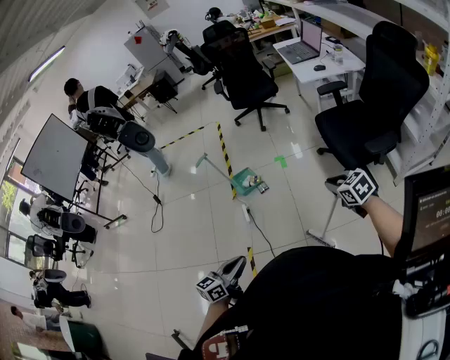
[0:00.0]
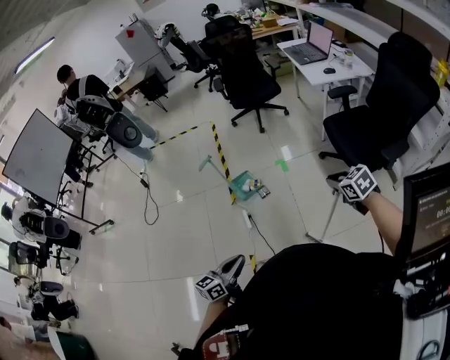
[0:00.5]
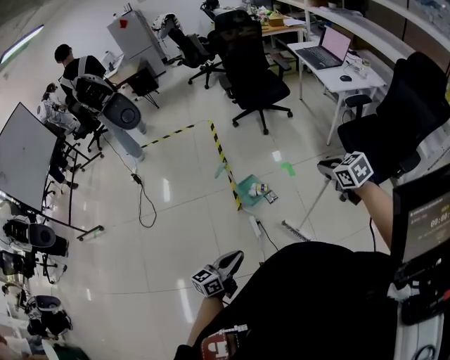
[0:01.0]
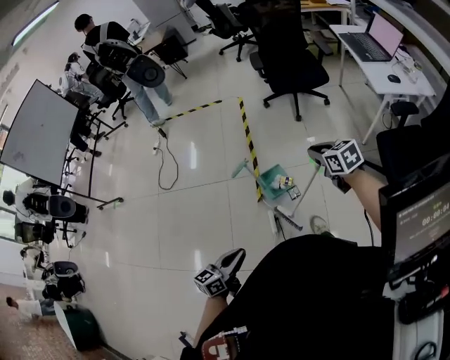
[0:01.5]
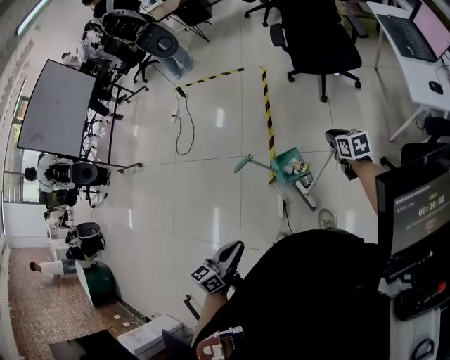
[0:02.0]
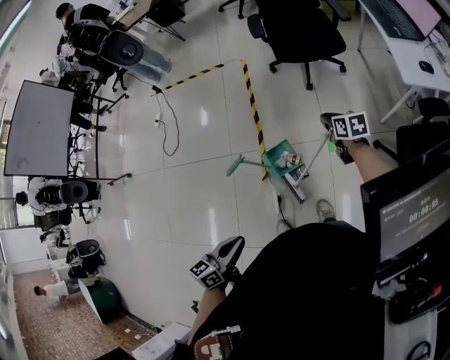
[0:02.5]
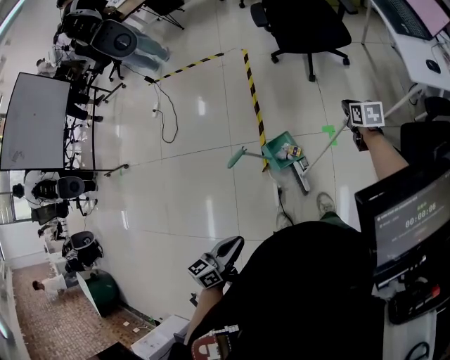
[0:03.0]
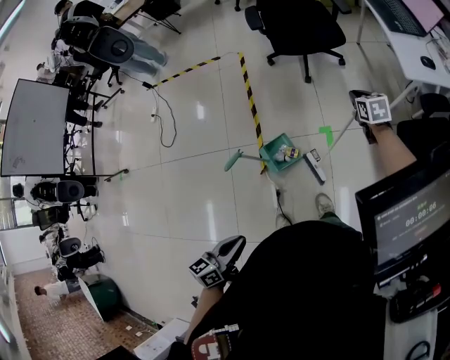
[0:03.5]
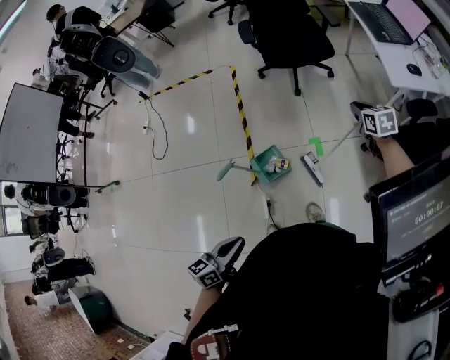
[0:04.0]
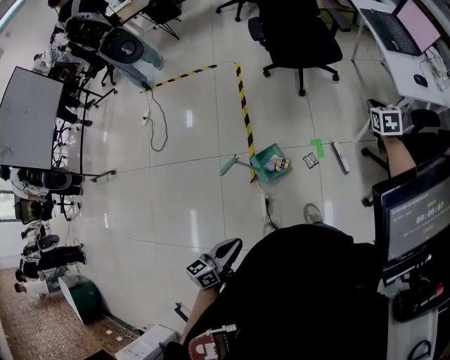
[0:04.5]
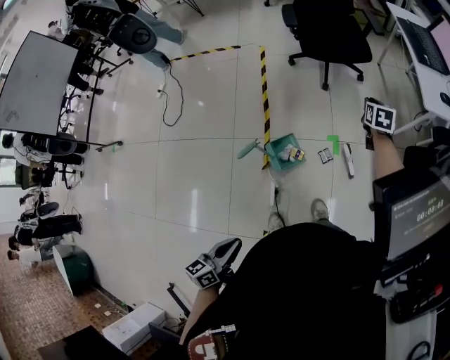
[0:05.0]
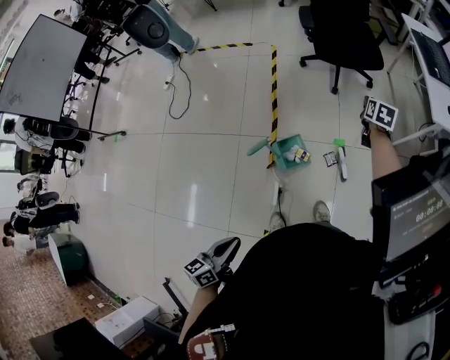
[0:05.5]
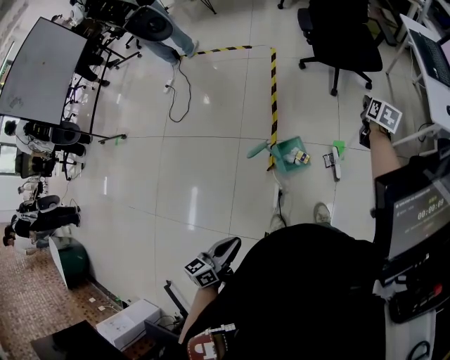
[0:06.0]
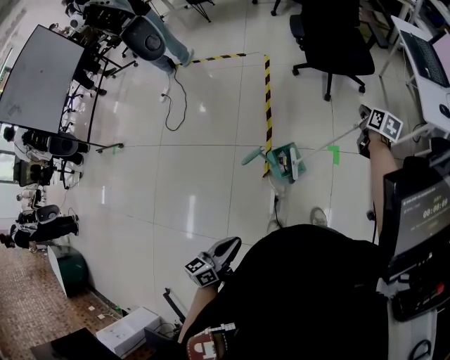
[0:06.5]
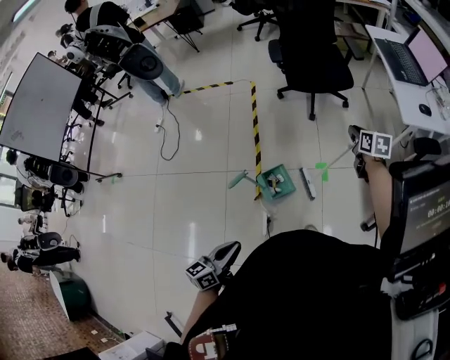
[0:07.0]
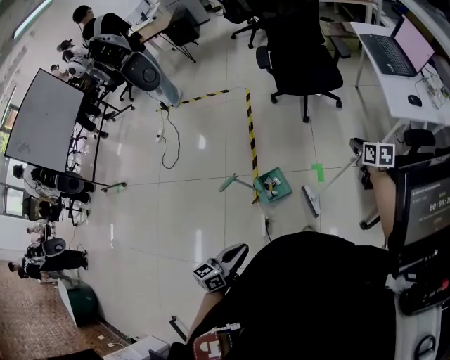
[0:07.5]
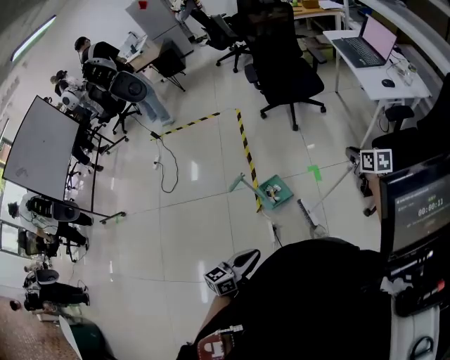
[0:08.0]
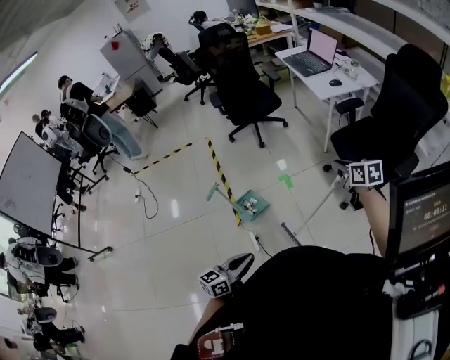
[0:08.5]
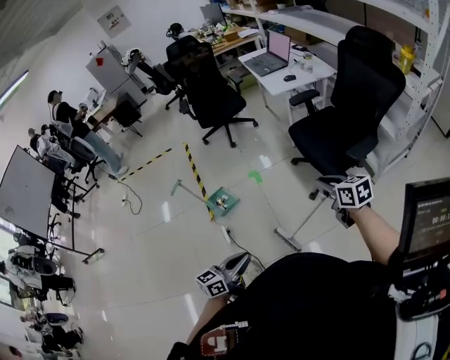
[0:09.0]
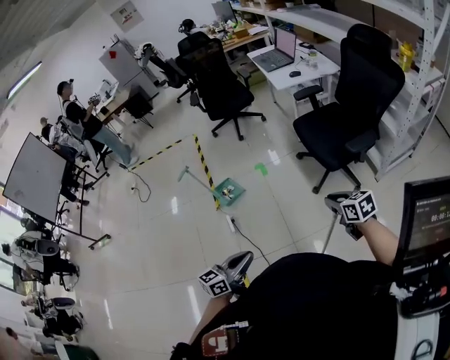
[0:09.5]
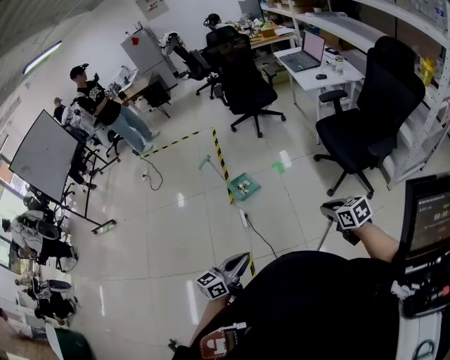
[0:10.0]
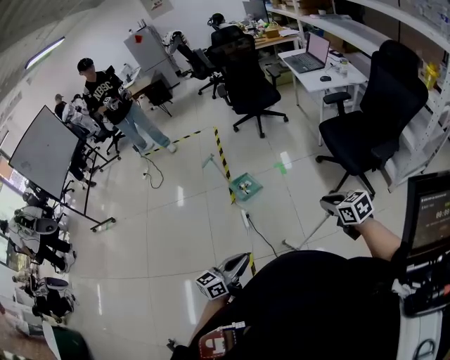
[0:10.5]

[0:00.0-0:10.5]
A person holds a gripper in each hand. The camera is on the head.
0.0 to 2.0 s: The two grippers travel together, forward and to the left, about 60 cm. The left gripper rotates about 20 degrees.
2.0 to 4.0 s: The left gripper is displaced downward and forward by about 10 cm, while the right gripper goes some 15 cm to the right and forward.
4.0 to 6.5 s: The left gripper is displaced to the left and backward by some 10 cm, while the right gripper travels to the left by about 15 cm, and turns by roughly 30 degrees.
6.5 to 8.5 s: The left gripper travels to the right and backward by approximately 20 cm, and turns by some 40 degrees; the right gripper is displaced backward and to the right by approximately 50 cm.
8.5 to 10.5 s: The left gripper goes some 30 cm backward and to the right. Meanwhile the right gripper heads backward, covering some 35 cm, and changes its angle by approximately 30 degrees.

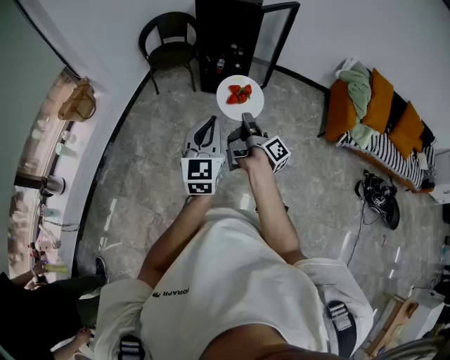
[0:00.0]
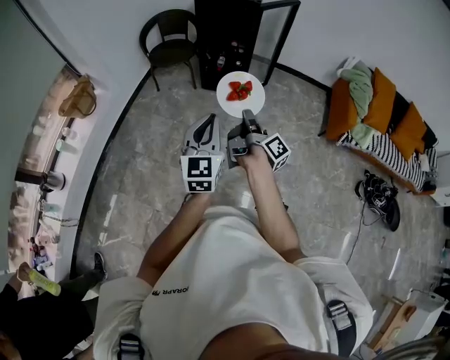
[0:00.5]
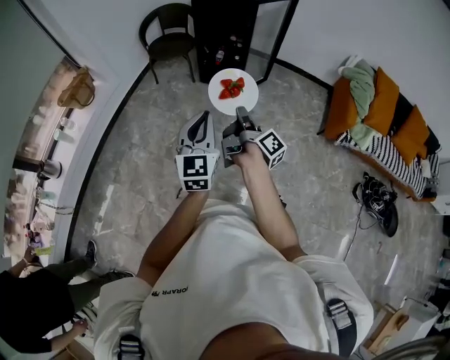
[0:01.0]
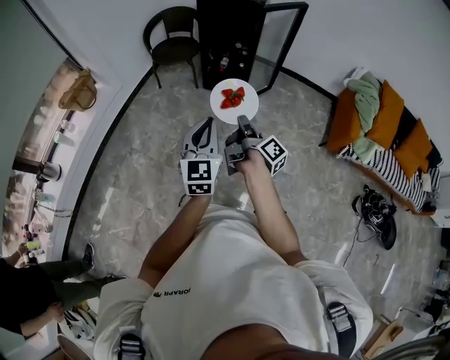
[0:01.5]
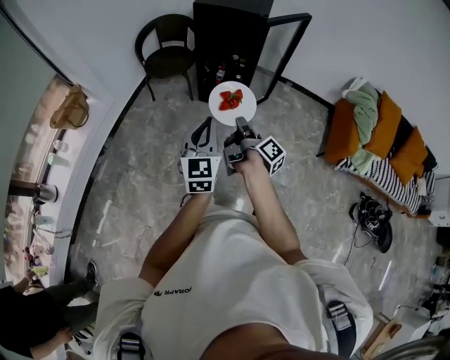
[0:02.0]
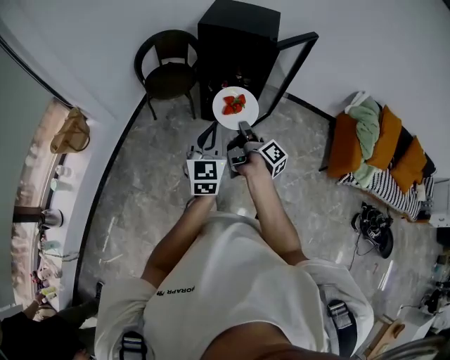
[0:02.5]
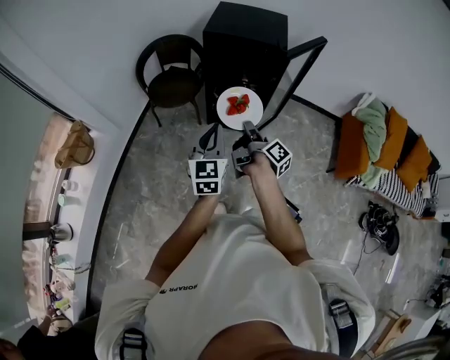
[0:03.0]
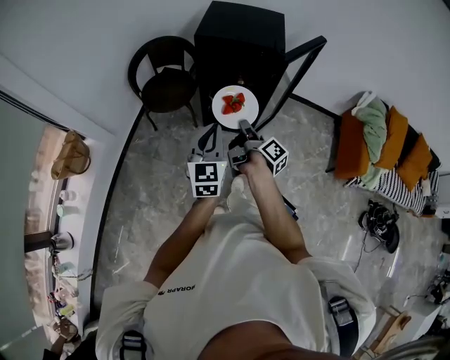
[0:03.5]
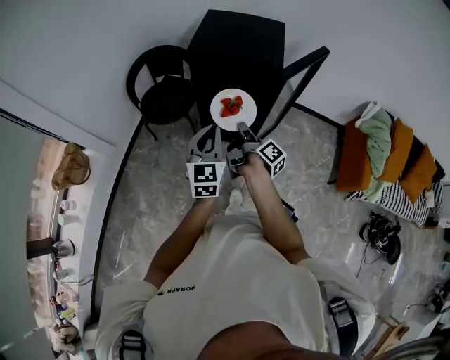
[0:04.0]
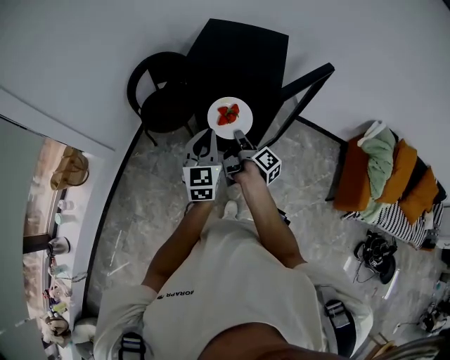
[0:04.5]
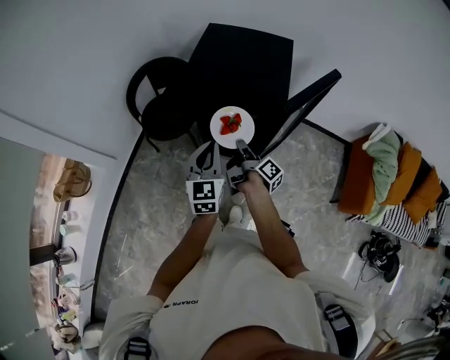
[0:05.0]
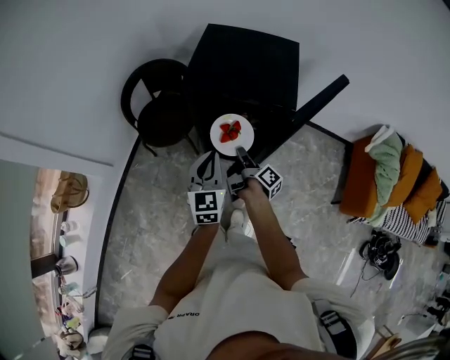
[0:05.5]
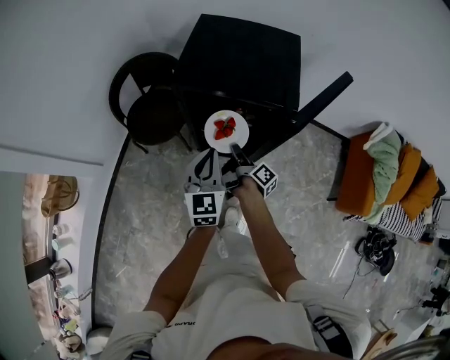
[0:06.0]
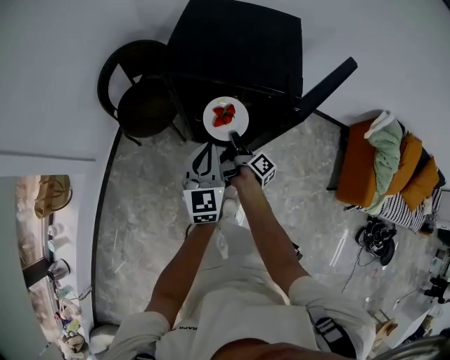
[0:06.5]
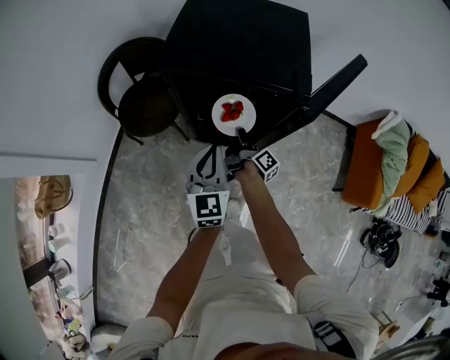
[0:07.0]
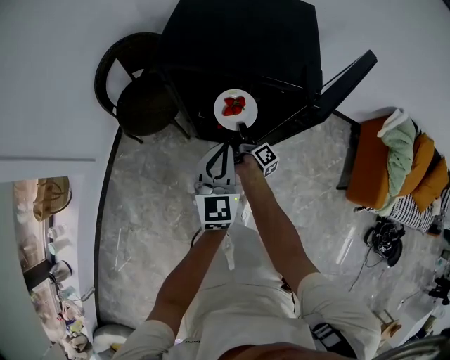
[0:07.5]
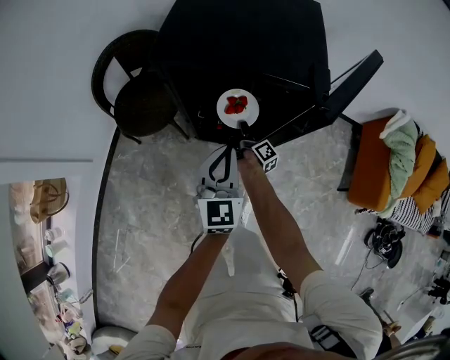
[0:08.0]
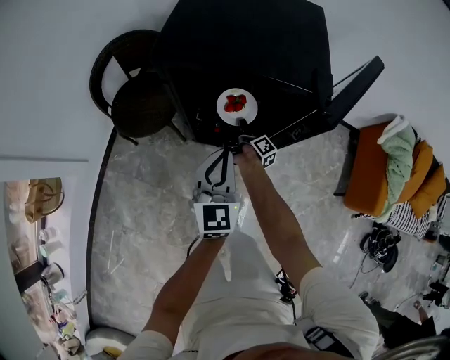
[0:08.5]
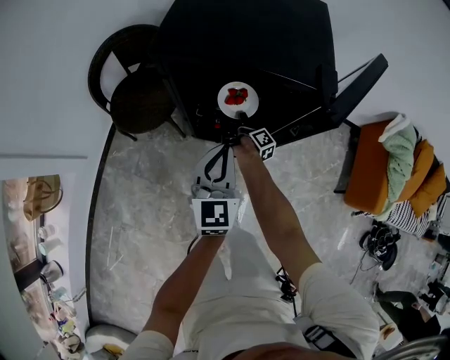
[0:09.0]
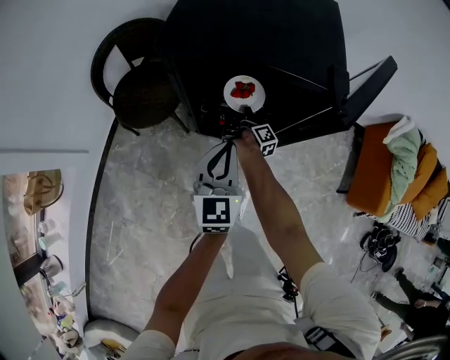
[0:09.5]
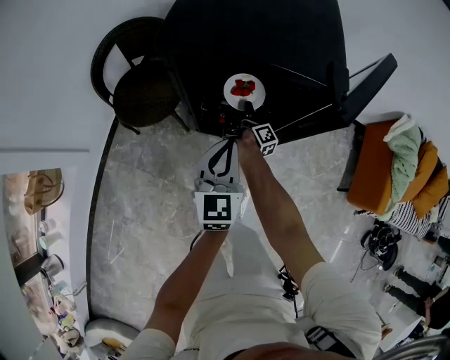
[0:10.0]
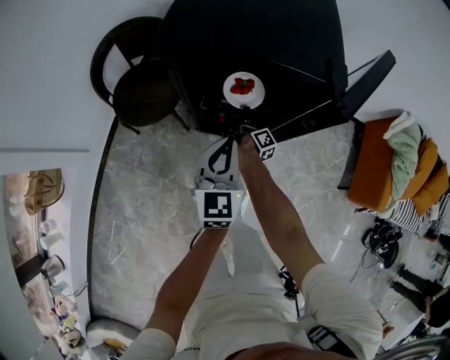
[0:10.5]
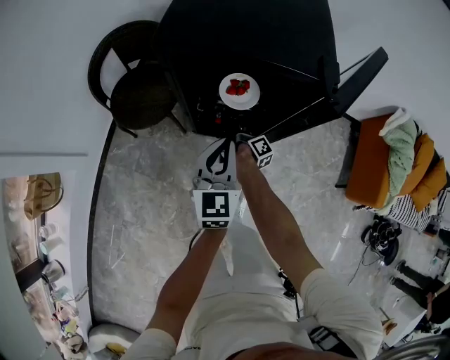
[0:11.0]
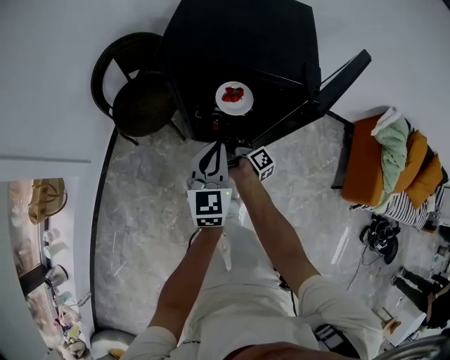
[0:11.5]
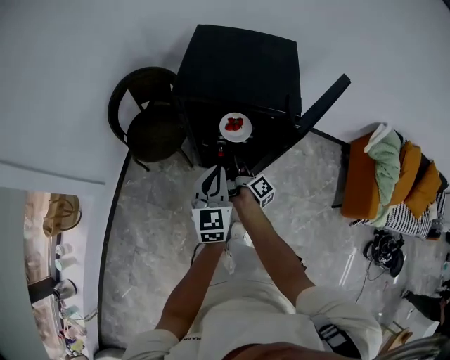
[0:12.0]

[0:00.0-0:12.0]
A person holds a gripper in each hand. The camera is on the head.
0.0 to 2.0 s: The left gripper ends up about 20 cm from where it was.
2.0 to 4.0 s: The left gripper shifts by roughly 35 cm.
4.0 to 6.0 s: The left gripper shifts by approximately 20 cm.
6.0 to 8.0 s: The left gripper heads downward, covering approximately 10 cm.
10.0 to 12.0 s: The left gripper shifts roughly 10 cm upward.

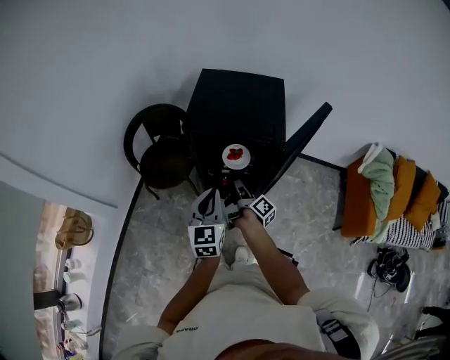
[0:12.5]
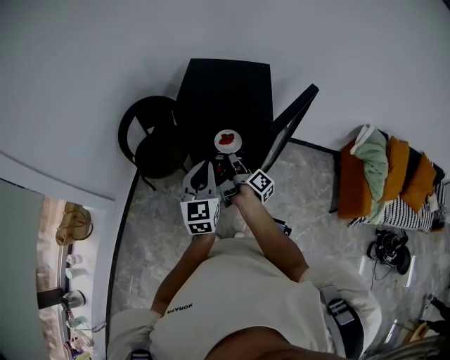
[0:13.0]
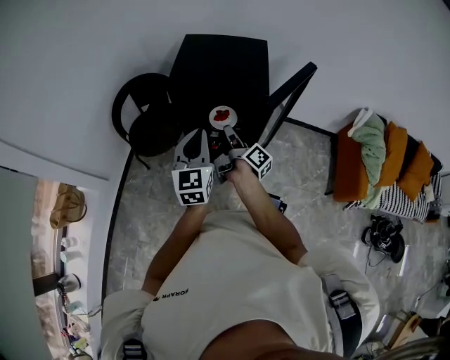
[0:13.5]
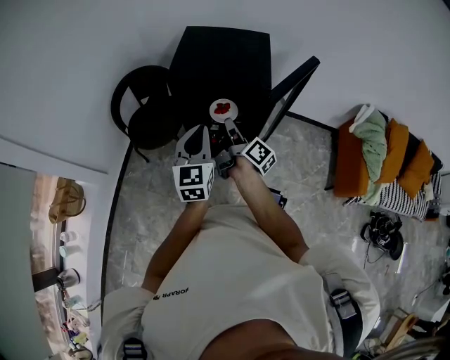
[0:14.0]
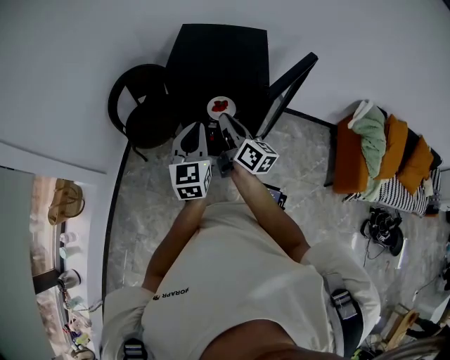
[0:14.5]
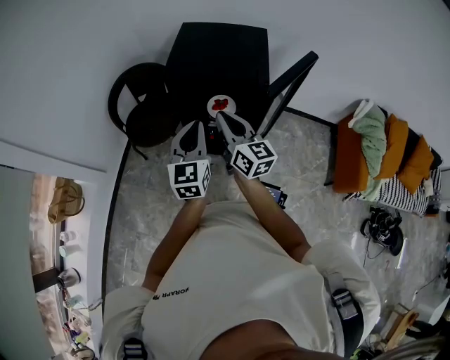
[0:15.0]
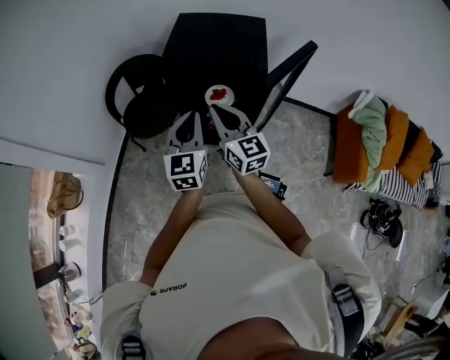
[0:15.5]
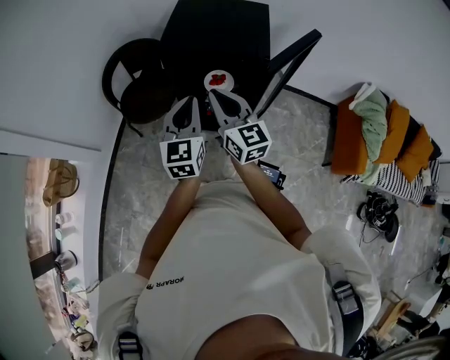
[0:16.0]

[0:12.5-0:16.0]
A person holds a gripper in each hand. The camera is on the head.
12.5 to 14.5 s: The left gripper shifts by some 5 cm.

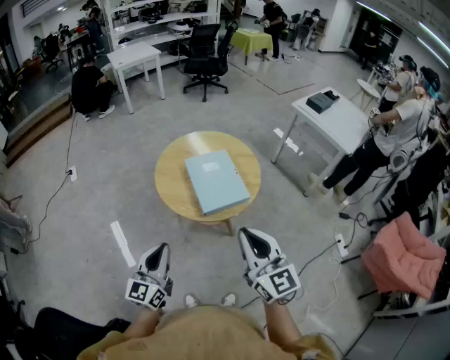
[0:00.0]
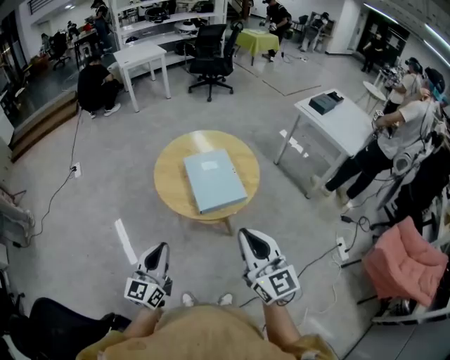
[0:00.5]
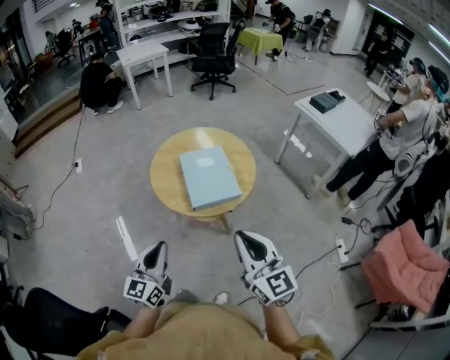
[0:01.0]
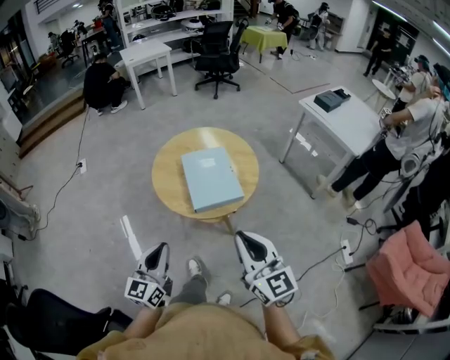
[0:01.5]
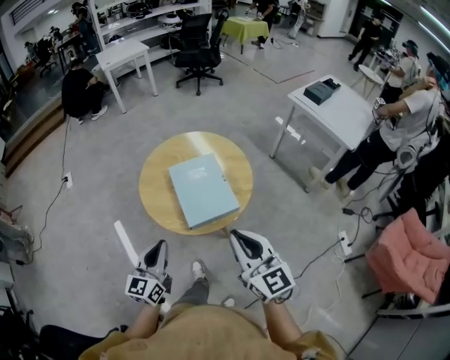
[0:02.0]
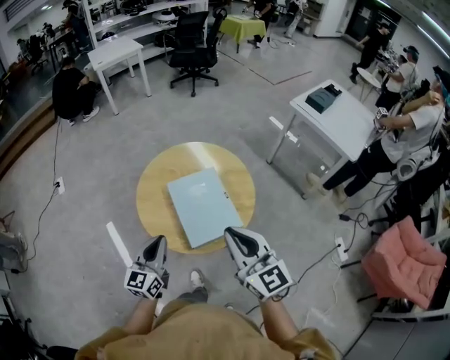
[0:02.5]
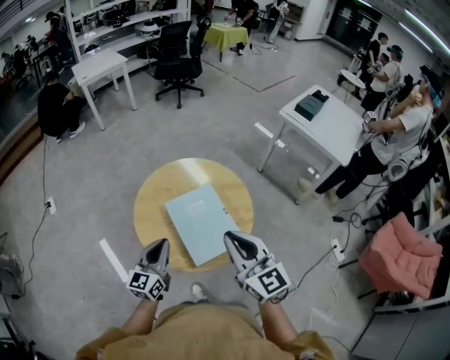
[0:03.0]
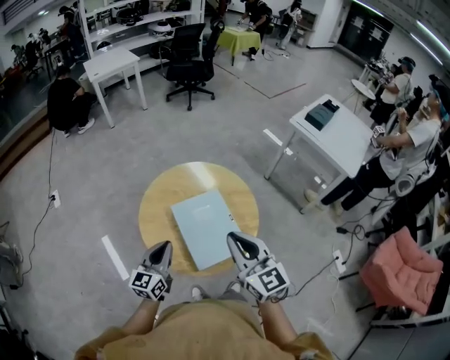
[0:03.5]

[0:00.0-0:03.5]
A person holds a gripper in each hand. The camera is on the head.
0.0 to 2.0 s: Both grippers travel together forward and to the right, roughly 15 cm.
2.0 to 3.5 s: Both grippers travel together forward, approximately 20 cm.
